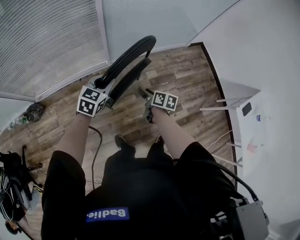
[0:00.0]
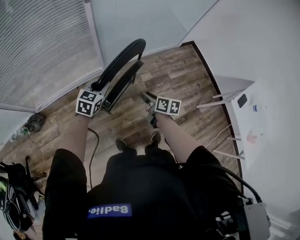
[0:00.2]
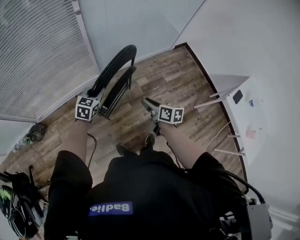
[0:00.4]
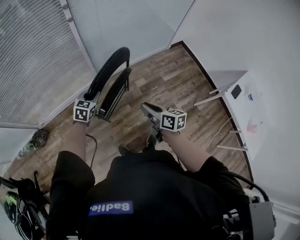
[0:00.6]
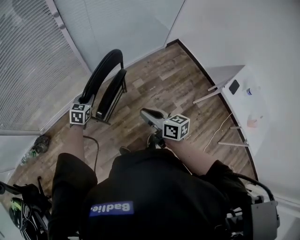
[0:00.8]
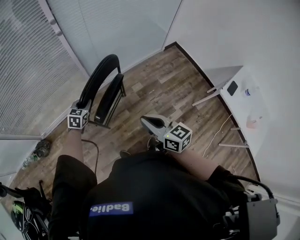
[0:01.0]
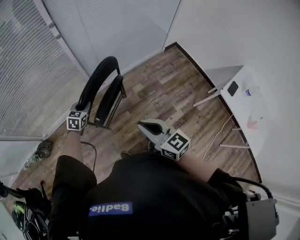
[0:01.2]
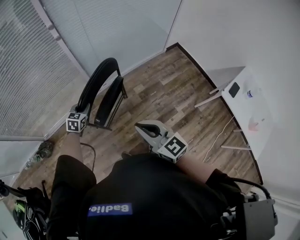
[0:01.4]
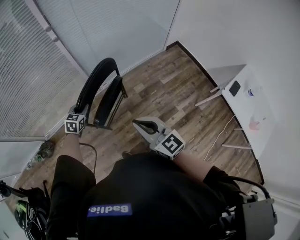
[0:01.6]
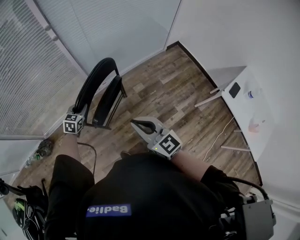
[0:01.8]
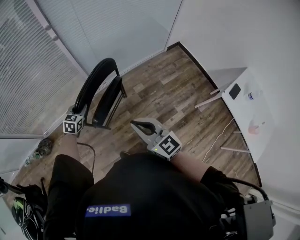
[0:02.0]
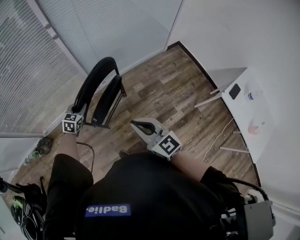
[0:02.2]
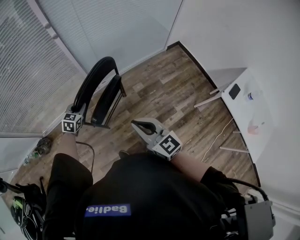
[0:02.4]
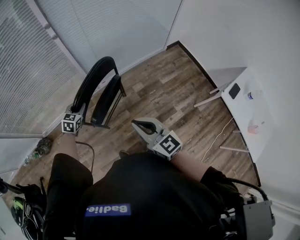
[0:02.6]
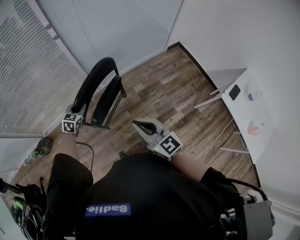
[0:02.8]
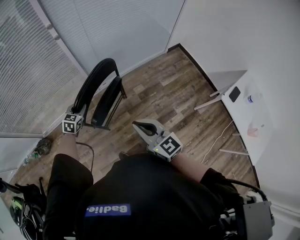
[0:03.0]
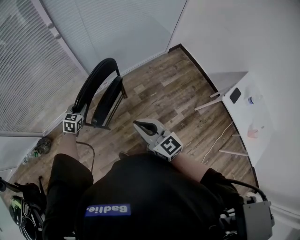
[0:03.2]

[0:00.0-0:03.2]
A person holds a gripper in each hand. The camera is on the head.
0.0 to 1.6 s: The right gripper goes roughly 35 cm upward and backward, rolls counterclockwise, seen from behind, by about 50 degrees, and closes its fingers.
1.6 to 3.2 s: The grippers make only small movements.

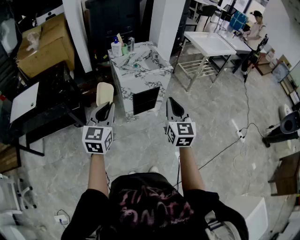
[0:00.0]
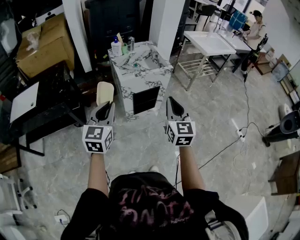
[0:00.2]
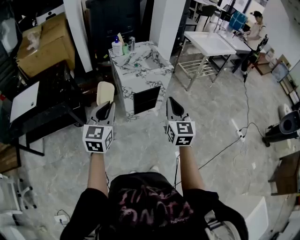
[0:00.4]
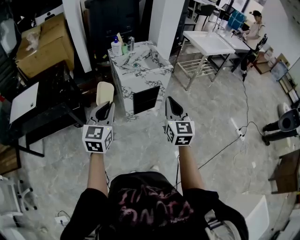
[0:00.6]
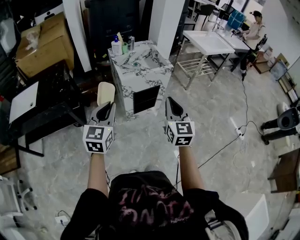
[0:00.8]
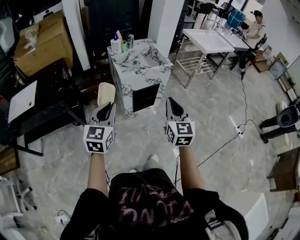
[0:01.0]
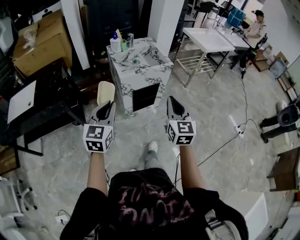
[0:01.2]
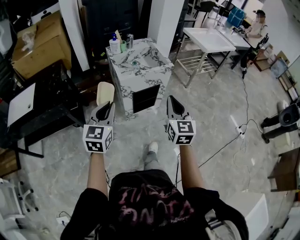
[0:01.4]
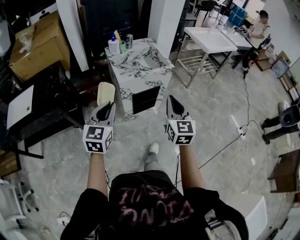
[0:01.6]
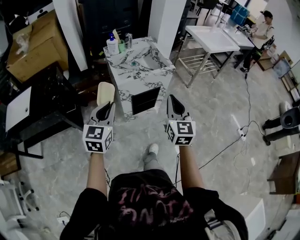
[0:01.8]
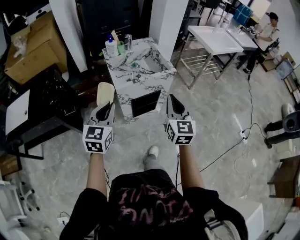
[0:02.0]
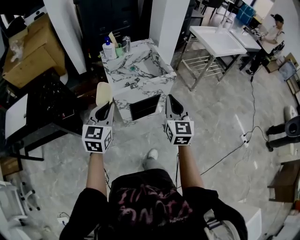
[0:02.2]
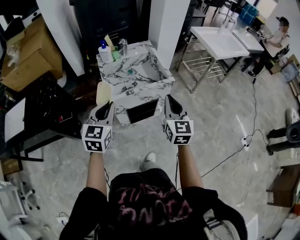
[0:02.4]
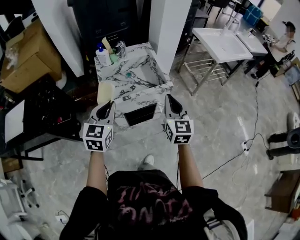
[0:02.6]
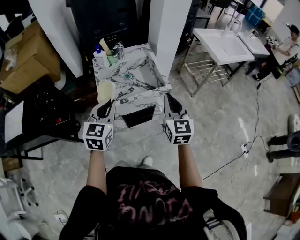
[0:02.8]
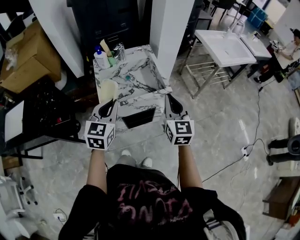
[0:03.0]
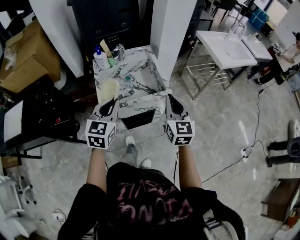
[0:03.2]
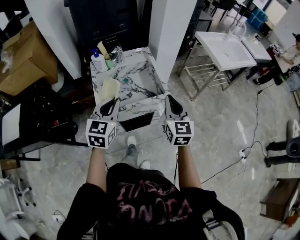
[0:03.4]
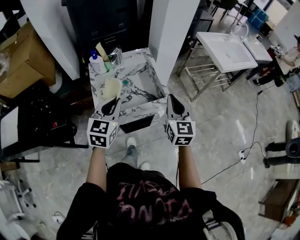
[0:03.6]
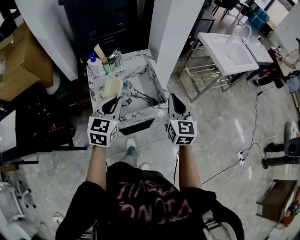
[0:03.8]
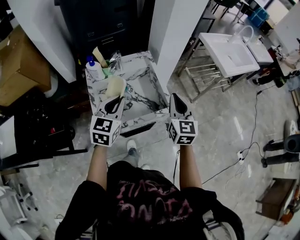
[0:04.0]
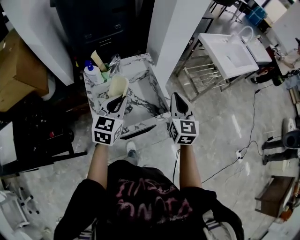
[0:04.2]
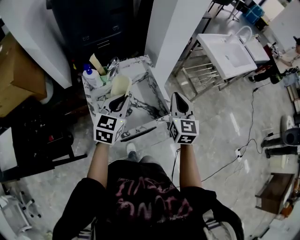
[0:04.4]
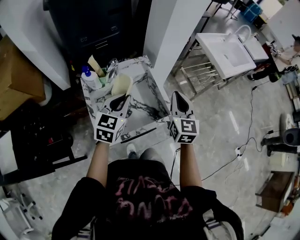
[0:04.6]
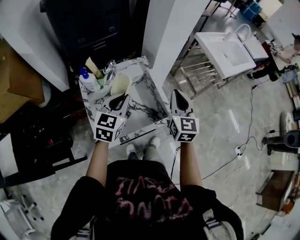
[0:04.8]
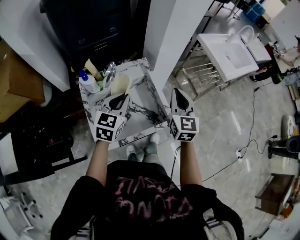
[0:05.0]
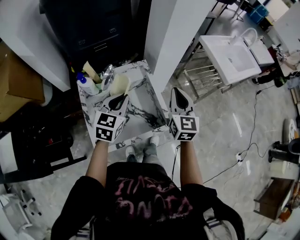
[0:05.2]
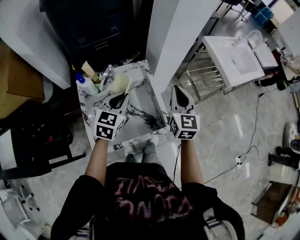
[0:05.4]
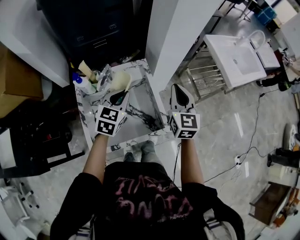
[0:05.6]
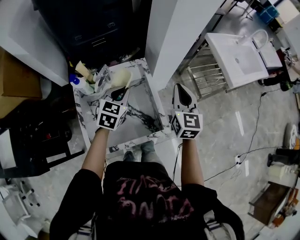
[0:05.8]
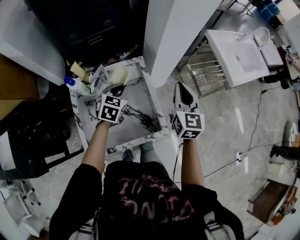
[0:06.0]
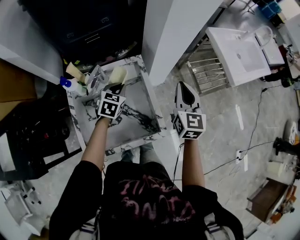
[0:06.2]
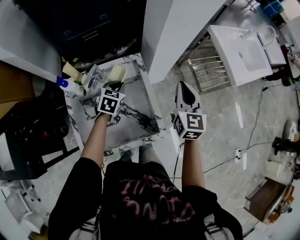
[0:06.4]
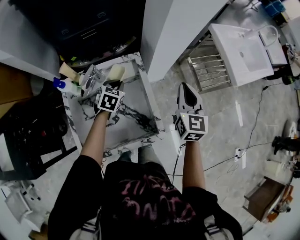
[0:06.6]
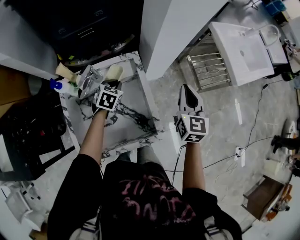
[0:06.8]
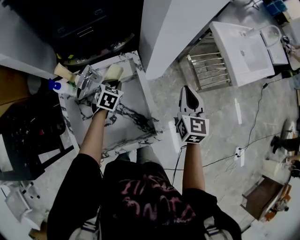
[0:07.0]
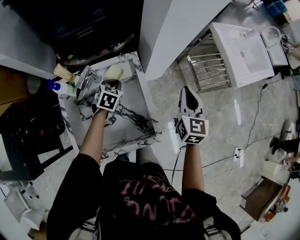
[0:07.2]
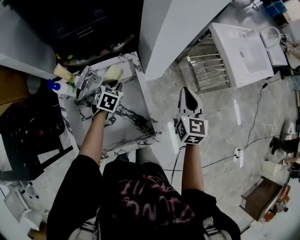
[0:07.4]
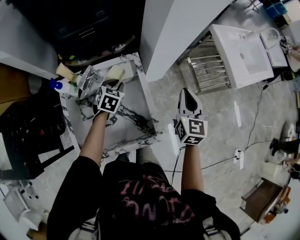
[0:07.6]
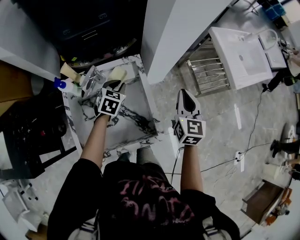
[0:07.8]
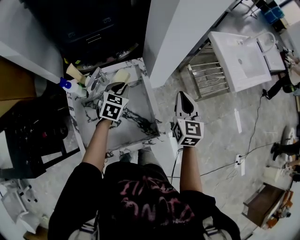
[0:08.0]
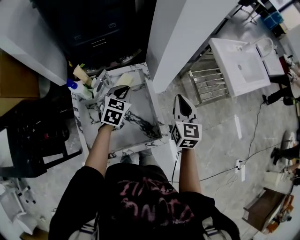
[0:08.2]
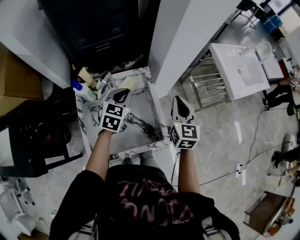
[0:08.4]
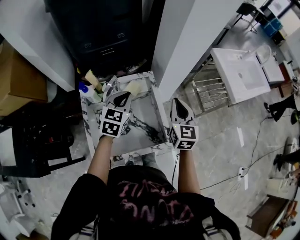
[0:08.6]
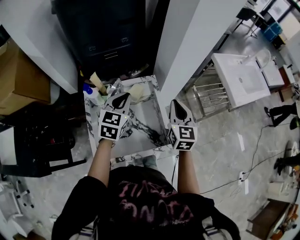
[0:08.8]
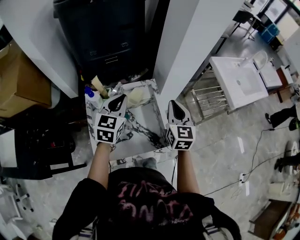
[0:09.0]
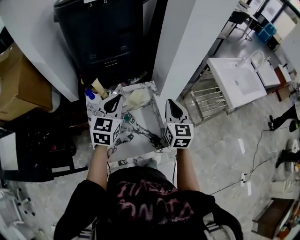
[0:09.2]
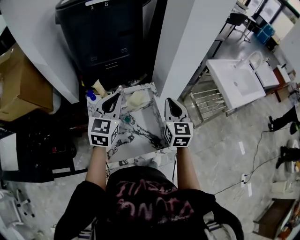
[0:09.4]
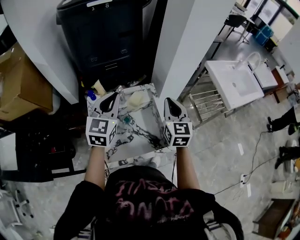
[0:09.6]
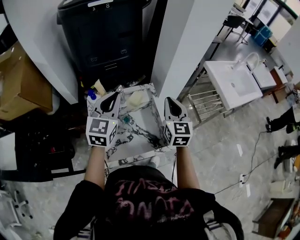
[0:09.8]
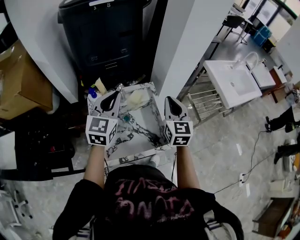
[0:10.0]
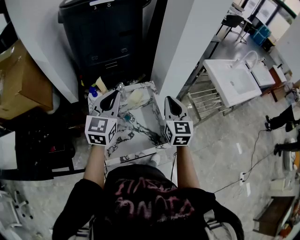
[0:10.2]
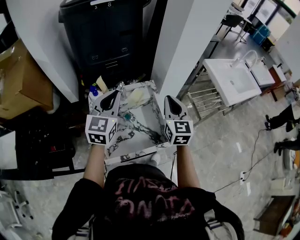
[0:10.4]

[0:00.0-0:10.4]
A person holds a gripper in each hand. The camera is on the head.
0.0 to 1.4 s: The grippers make only small movements.
1.4 to 3.0 s: The two grippers go about 35 cm forward.
3.0 to 4.4 s: Both grippers travel together forward, roughly 20 cm.
4.4 to 6.0 s: The right gripper goes roughly 15 cm forward. Meanwhile the left gripper travels forward and downward by about 20 cm.
6.0 to 7.4 s: The left gripper heads downward and forward, covering some 10 cm. The right gripper shifts about 10 cm downward and to the right.
7.4 to 9.0 s: The right gripper travels to the left, upward and backward by roughly 15 cm. Meanwhile the left gripper goes roughly 25 cm upward, and tilts its fingers about 30 degrees upward.
9.0 to 10.4 s: The left gripper shifts roughly 10 cm upward and backward. The right gripper shifts by roughly 5 cm.

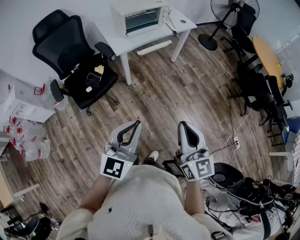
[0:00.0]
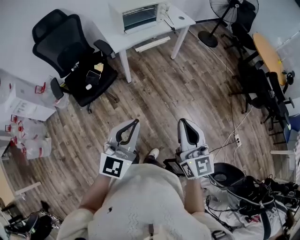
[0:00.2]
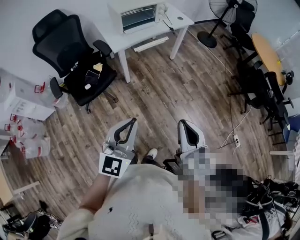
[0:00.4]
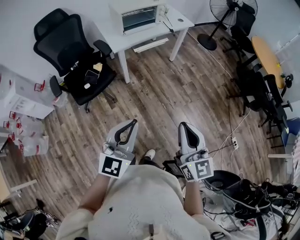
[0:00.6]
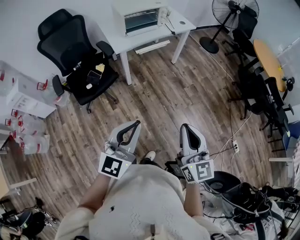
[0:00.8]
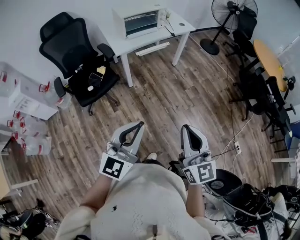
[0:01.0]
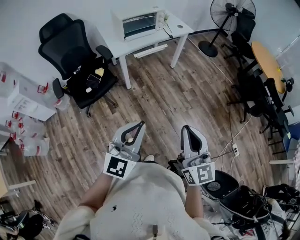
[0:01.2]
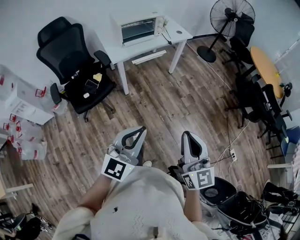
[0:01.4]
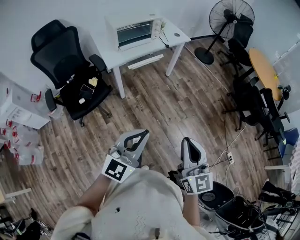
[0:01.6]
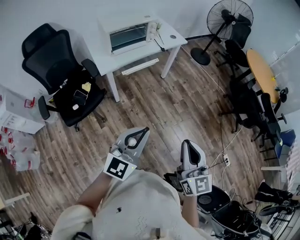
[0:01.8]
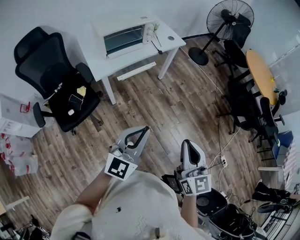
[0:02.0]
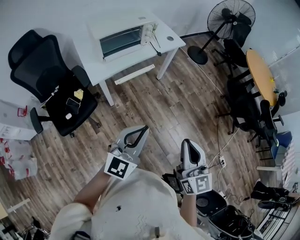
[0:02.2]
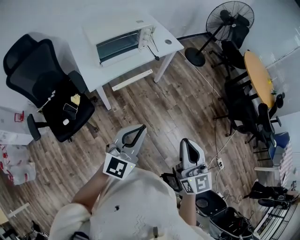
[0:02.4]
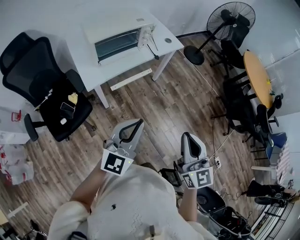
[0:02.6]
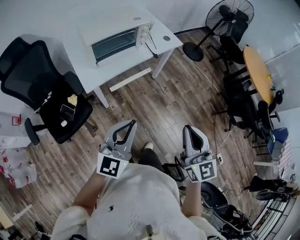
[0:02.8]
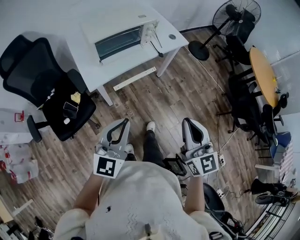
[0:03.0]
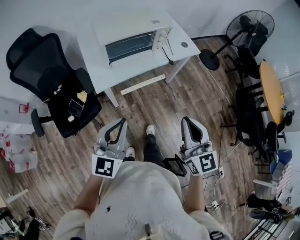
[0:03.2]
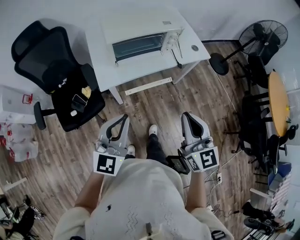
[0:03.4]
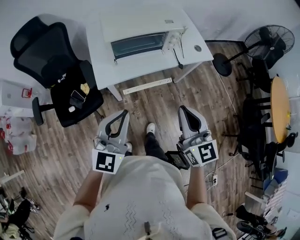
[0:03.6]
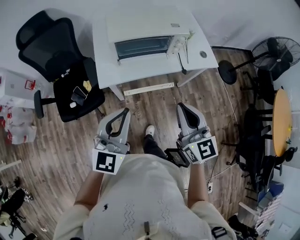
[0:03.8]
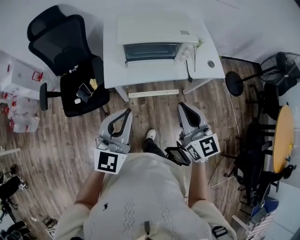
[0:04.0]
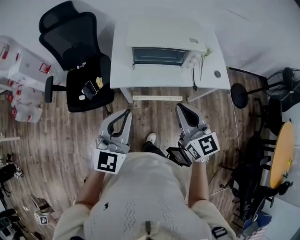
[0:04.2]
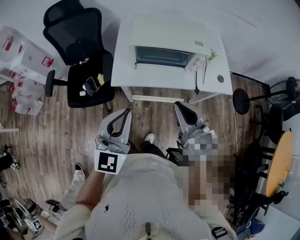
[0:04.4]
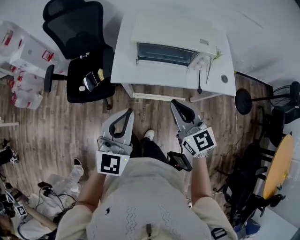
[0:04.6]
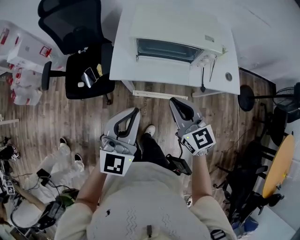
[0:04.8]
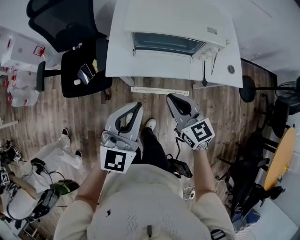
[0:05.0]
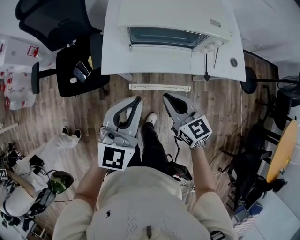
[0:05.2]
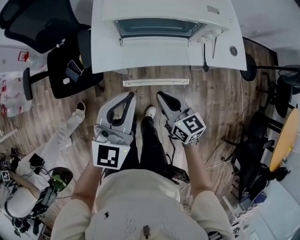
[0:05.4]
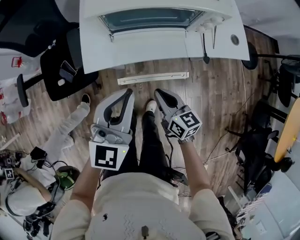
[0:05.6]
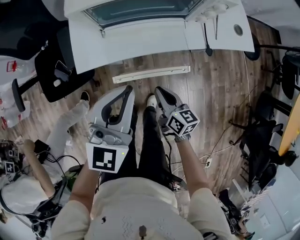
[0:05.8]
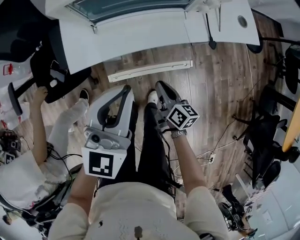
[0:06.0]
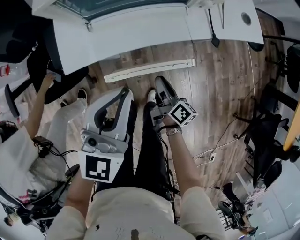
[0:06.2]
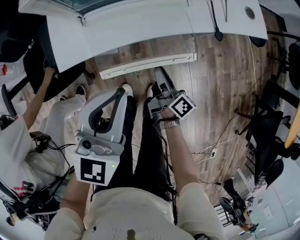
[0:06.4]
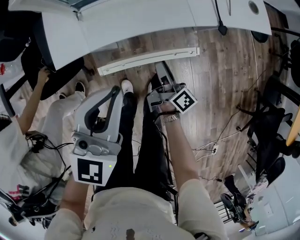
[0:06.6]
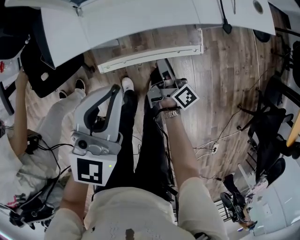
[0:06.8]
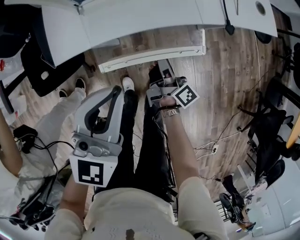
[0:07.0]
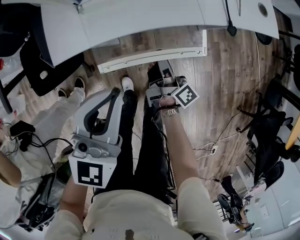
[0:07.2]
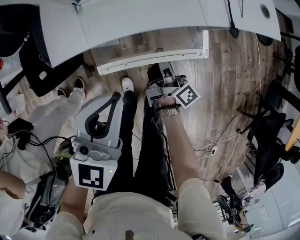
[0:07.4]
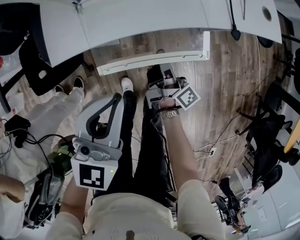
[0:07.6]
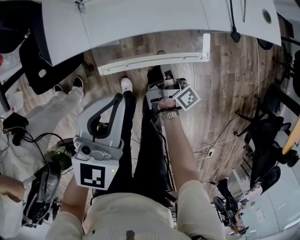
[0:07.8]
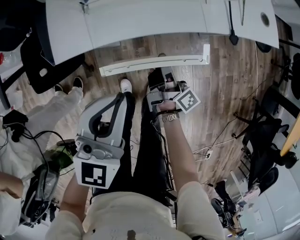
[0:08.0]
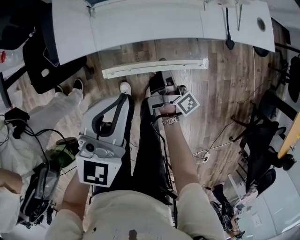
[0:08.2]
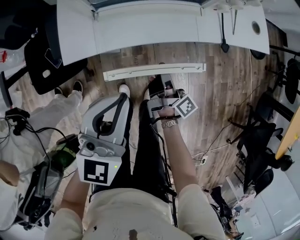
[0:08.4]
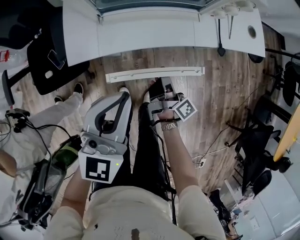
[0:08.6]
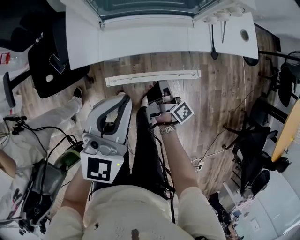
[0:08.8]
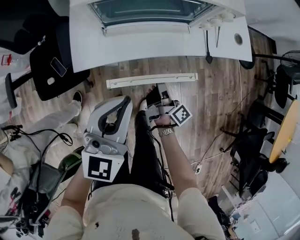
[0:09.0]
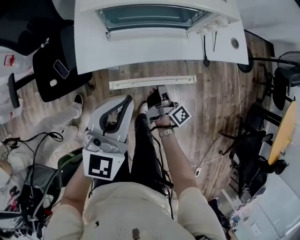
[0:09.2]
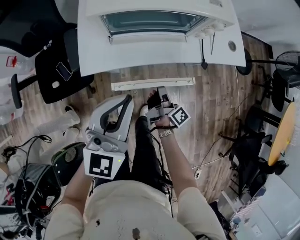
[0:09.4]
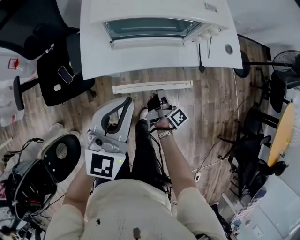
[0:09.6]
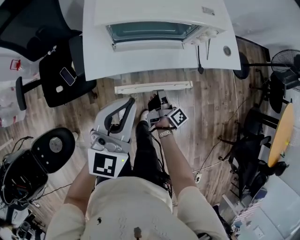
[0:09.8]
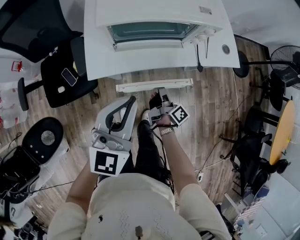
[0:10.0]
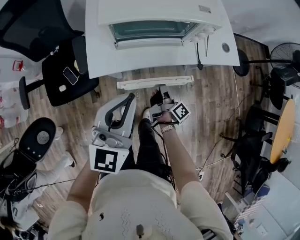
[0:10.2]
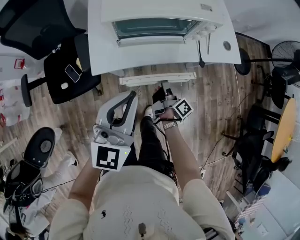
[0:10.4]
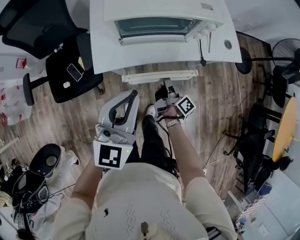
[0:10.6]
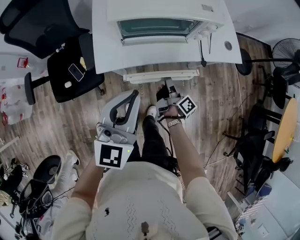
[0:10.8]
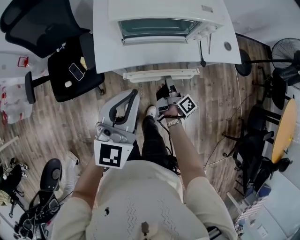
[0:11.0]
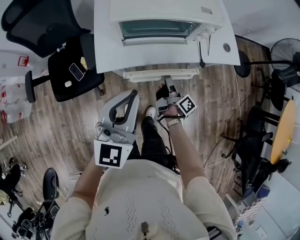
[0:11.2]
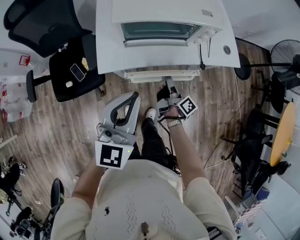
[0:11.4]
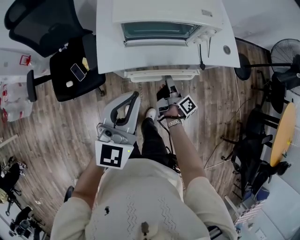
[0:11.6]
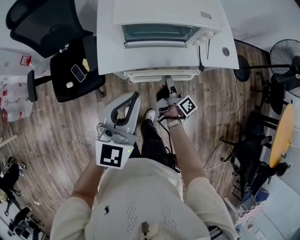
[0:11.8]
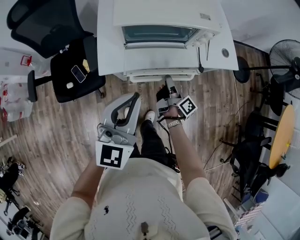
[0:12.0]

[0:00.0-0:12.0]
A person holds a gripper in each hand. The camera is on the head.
0.0 to 1.6 s: The two grippers go roughly 10 cm to the right.
1.6 to 3.0 s: Both grippers move forward, roughly 30 cm.
3.0 to 4.4 s: The right gripper changes place by about 25 cm, and rotates approximately 40 degrees, while the left gripper ends up roughly 15 cm from where it was, and changes its angle by roughly 40 degrees.
4.4 to 6.0 s: The right gripper travels downward by some 40 cm, and rotates around the line of its fingers by approximately 50 degrees, clockwise from behind, while the left gripper shifts about 25 cm downward, forward and to the right, and turns by about 20 degrees.
6.0 to 7.6 s: The left gripper goes some 10 cm downward. Meanwhile the right gripper travels forward by approximately 5 cm, and turns by roughly 40 degrees.
7.6 to 9.0 s: Both grippers move upward, about 10 cm.
9.0 to 10.4 s: The left gripper is displaced upward by approximately 10 cm.
10.4 to 12.0 s: The right gripper moves upward, about 5 cm.
